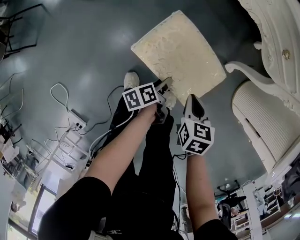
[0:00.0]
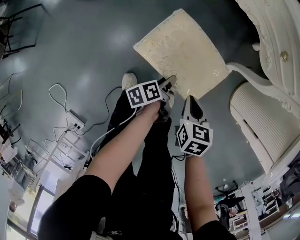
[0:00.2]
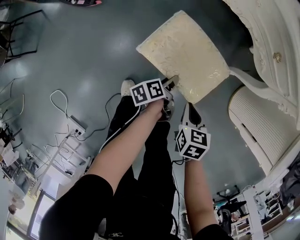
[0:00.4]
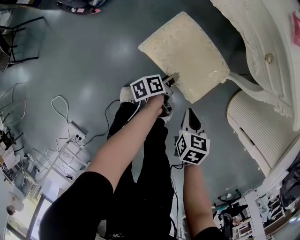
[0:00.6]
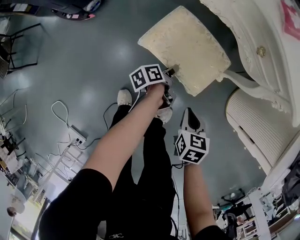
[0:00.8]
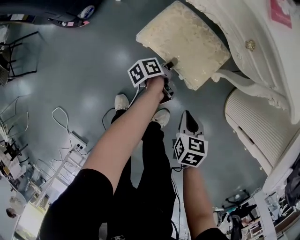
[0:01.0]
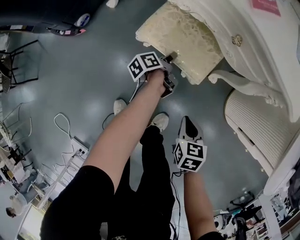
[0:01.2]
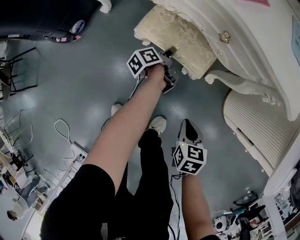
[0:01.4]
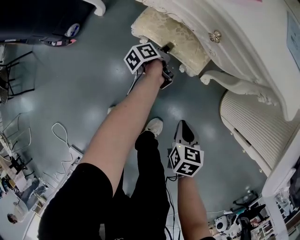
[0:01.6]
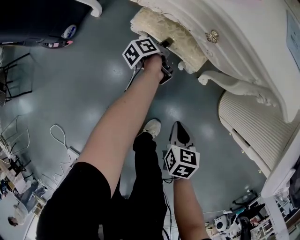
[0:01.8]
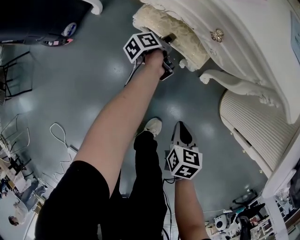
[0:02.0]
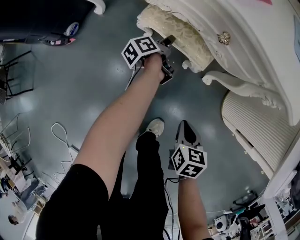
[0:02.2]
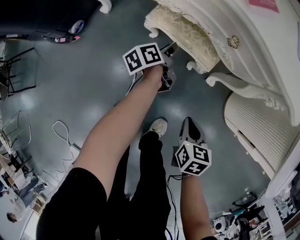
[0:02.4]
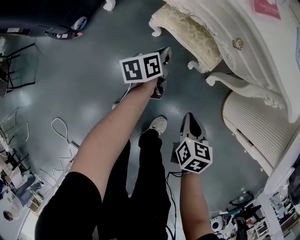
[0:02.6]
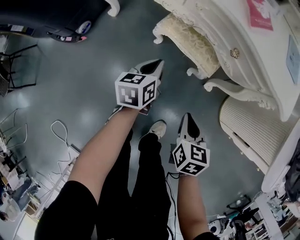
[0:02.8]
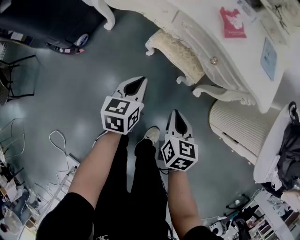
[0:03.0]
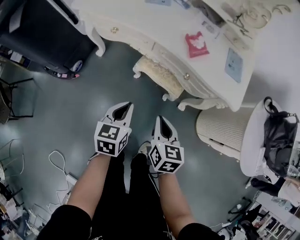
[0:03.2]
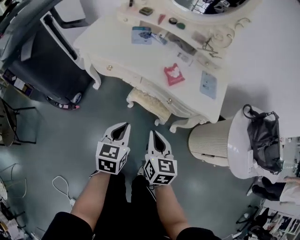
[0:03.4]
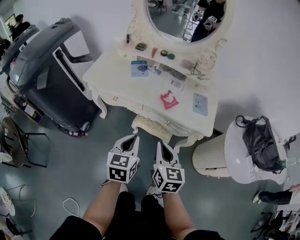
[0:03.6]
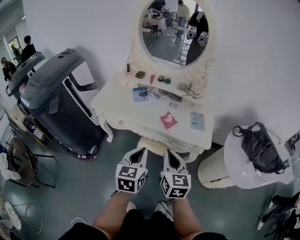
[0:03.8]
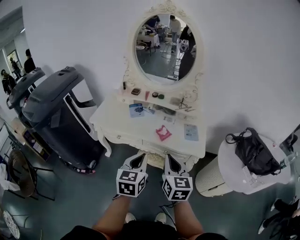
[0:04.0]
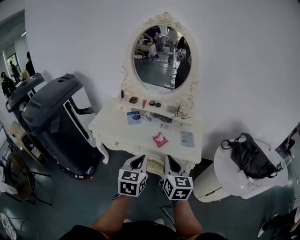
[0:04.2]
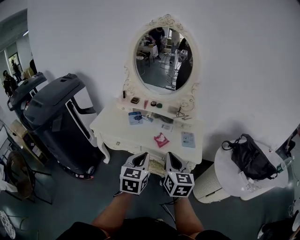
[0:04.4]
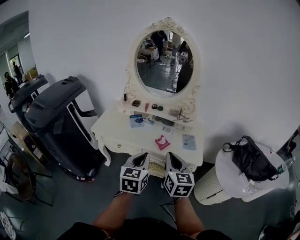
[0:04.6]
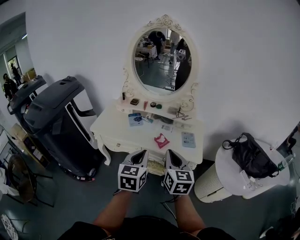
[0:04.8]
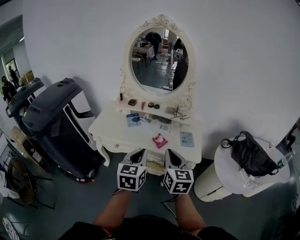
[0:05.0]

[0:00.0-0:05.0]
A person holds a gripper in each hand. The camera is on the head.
0:00.0 to 0:01.6: The left gripper travels forward by roughly 30 cm. Meanwhile the right gripper travels to the right by approximately 15 cm.
0:01.6 to 0:03.4: The right gripper shifts roughly 35 cm upward and to the left, and tips its fingers upward by some 30 degrees. The left gripper heads upward and backward, covering some 50 cm, twists roughly 80 degrees clockwise, seen from behind, and closes.
0:03.4 to 0:05.0: Both grippers travel together upward, some 25 cm. The right gripper rotates some 20 degrees. Meanwhile the left gripper turns by some 20 degrees.

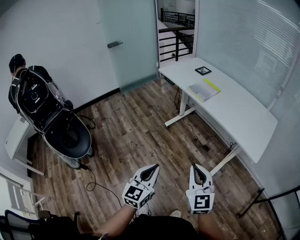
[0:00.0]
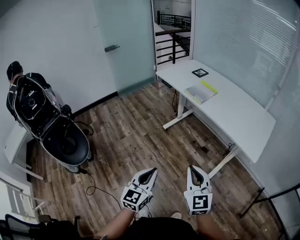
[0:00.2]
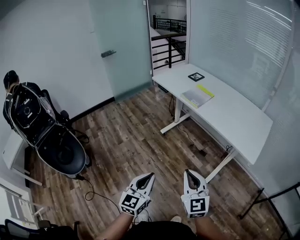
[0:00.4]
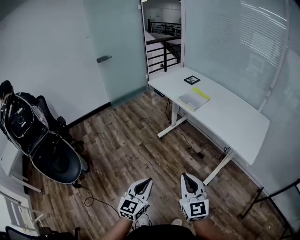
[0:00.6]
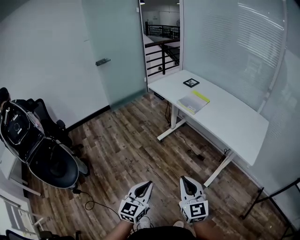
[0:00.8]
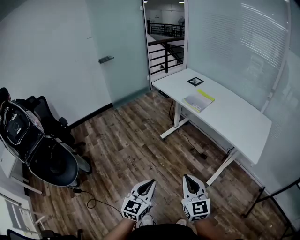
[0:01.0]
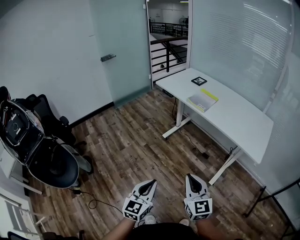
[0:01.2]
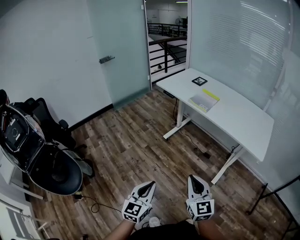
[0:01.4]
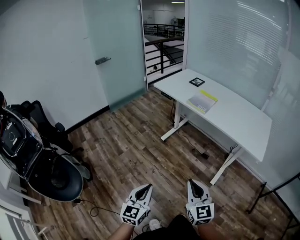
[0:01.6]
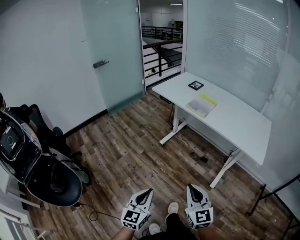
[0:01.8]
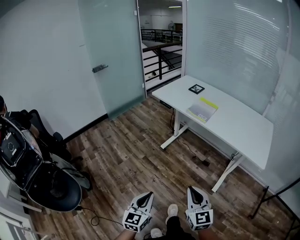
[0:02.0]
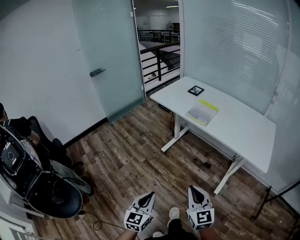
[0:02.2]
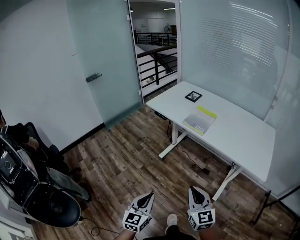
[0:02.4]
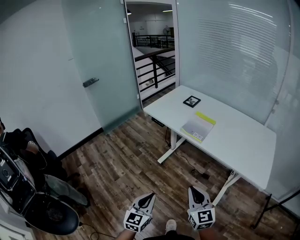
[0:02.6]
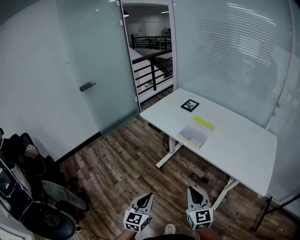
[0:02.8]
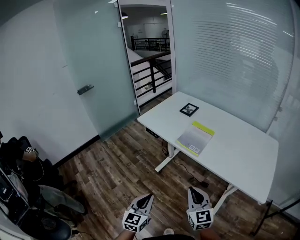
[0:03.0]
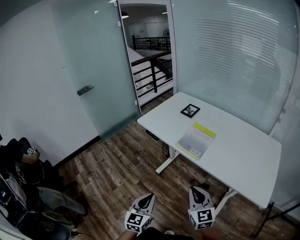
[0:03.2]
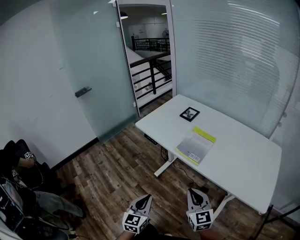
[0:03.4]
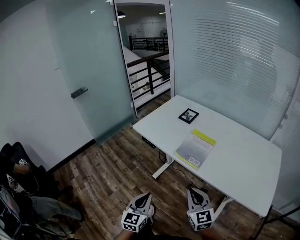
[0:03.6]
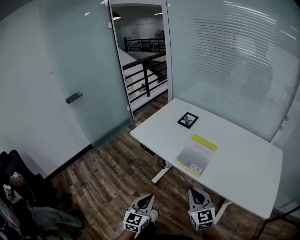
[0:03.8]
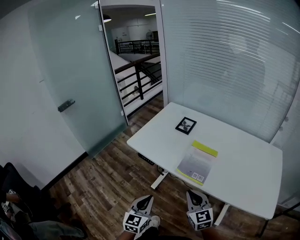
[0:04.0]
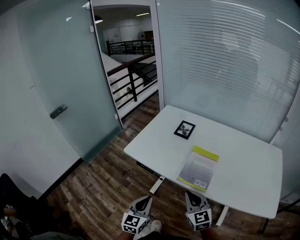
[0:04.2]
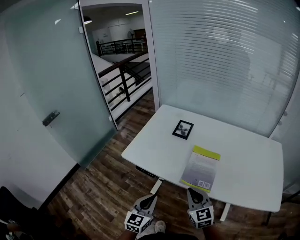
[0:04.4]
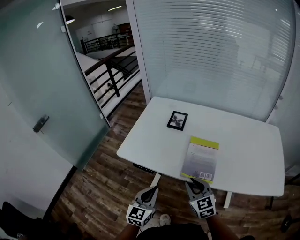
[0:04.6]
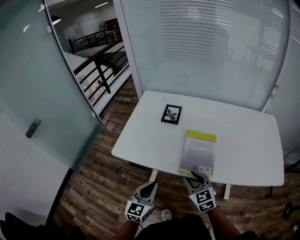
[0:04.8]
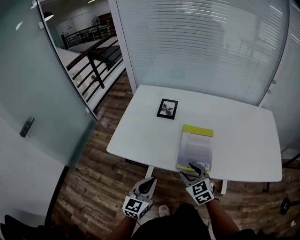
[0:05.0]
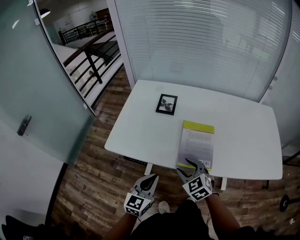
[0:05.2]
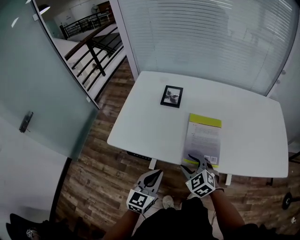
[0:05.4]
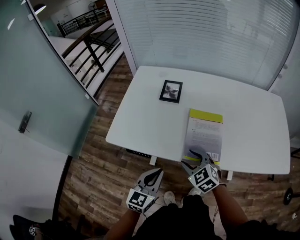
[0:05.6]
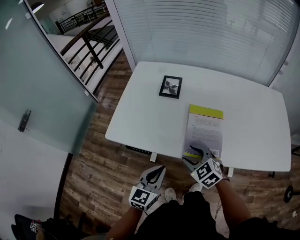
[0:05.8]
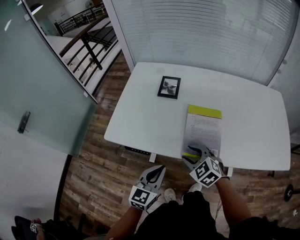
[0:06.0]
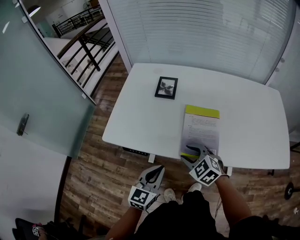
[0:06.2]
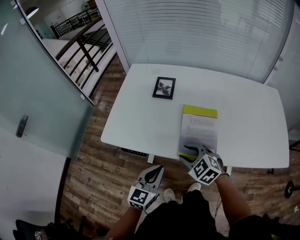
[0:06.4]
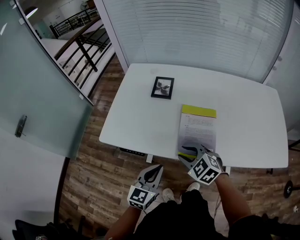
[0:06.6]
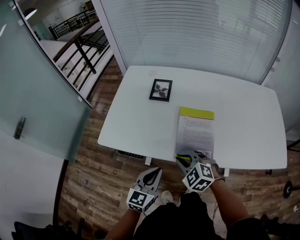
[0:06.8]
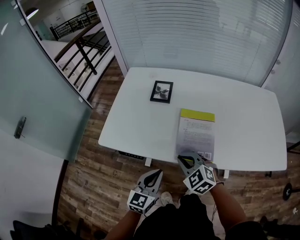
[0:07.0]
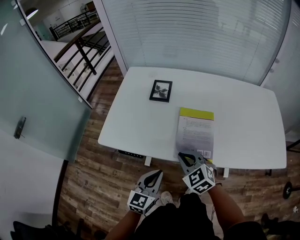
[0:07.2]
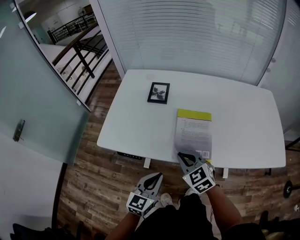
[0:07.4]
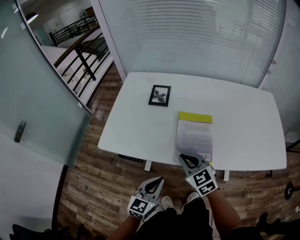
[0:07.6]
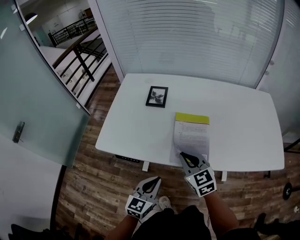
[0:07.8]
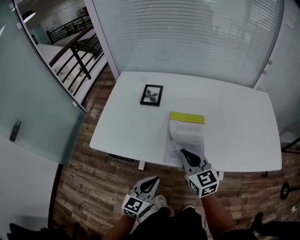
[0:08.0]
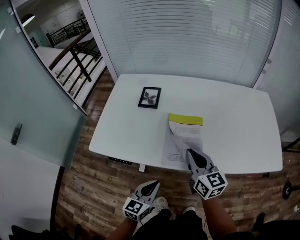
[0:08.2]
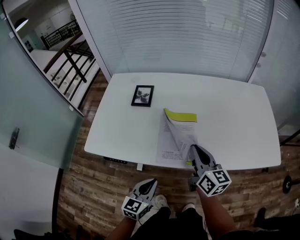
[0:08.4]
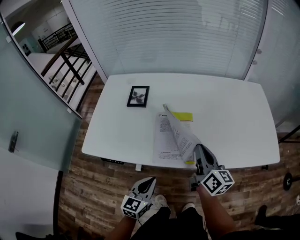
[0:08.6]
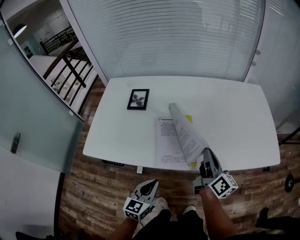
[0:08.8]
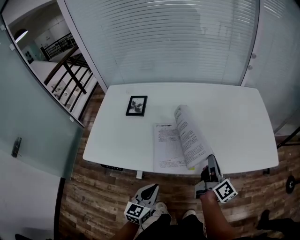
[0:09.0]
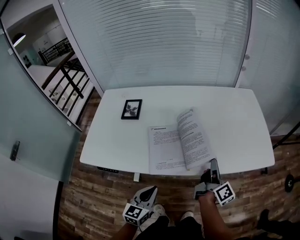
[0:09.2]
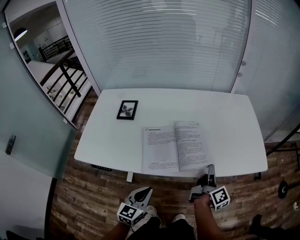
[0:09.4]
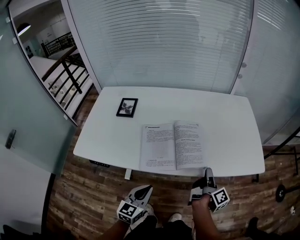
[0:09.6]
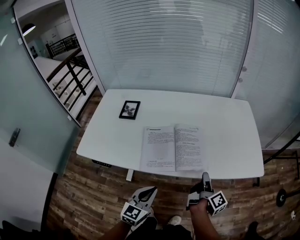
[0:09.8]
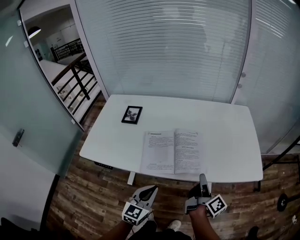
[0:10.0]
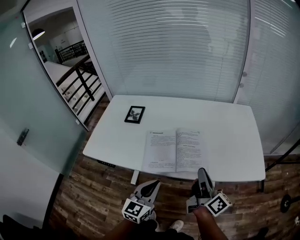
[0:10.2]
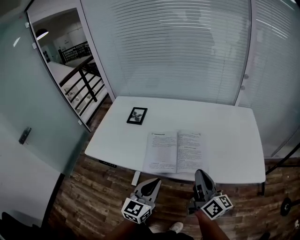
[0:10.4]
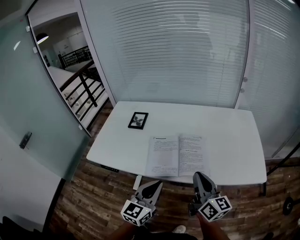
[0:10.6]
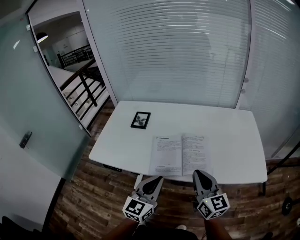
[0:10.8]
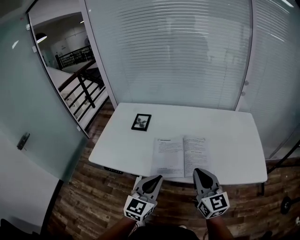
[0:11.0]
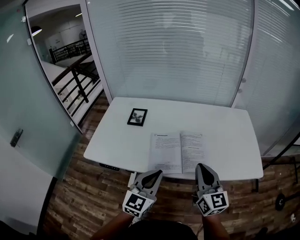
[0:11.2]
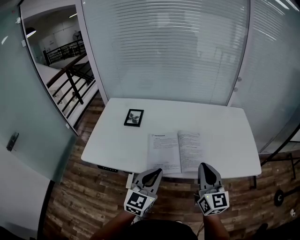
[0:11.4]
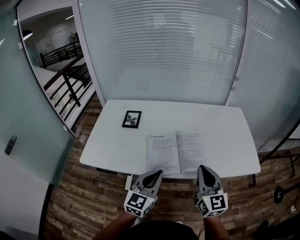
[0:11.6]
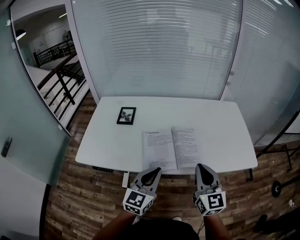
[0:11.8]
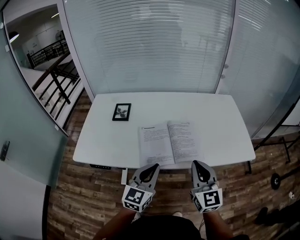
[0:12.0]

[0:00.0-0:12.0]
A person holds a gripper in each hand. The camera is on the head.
0:00.0 to 0:01.6: Both grippers move to the left, some 15 cm.
0:01.6 to 0:03.0: Both grippers move forward, approximately 30 cm.
0:03.0 to 0:04.4: Both grippers travel together forward, some 30 cm.
0:04.4 to 0:06.0: The right gripper goes some 10 cm downward and forward, rotates roughly 30 degrees, and opens. Meanwhile the left gripper travels forward by approximately 5 cm.
0:06.0 to 0:07.6: The right gripper ends up approximately 5 cm from where it was, swivels about 20 degrees, and closes.
0:07.6 to 0:09.0: The right gripper shifts roughly 25 cm to the right, and rotates around the line of its fingers by some 70 degrees, clockwise from behind. The left gripper goes approximately 10 cm to the right.
0:09.0 to 0:10.4: The right gripper shifts approximately 10 cm upward and backward, and turns by some 30 degrees, while the left gripper is displaced upward and to the right by some 15 cm.
0:10.4 to 0:12.0: The right gripper ends up about 5 cm from where it was, and rotates around the line of its fingers by some 50 degrees, counterclockwise from behind.

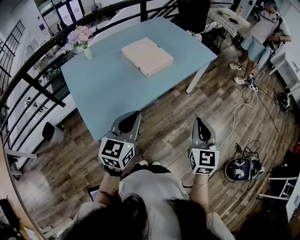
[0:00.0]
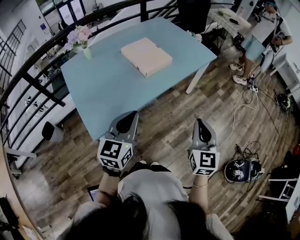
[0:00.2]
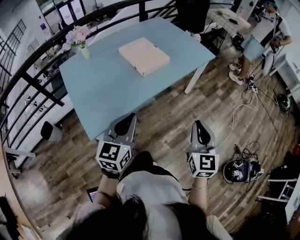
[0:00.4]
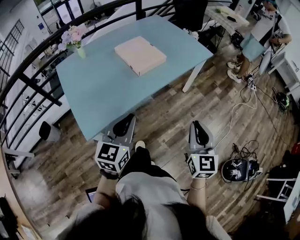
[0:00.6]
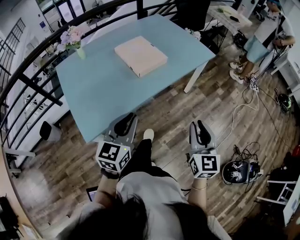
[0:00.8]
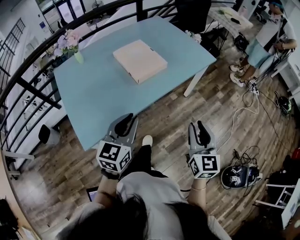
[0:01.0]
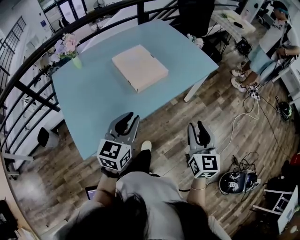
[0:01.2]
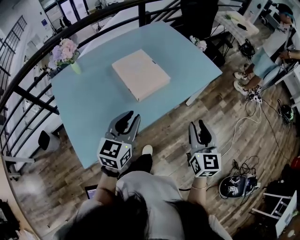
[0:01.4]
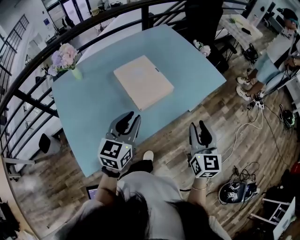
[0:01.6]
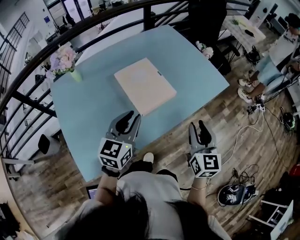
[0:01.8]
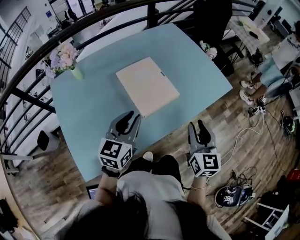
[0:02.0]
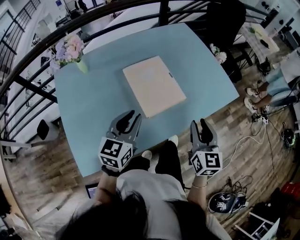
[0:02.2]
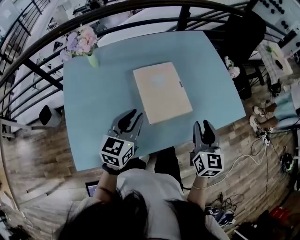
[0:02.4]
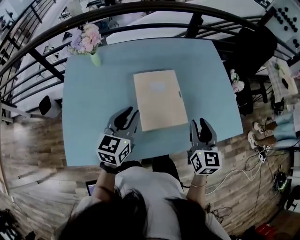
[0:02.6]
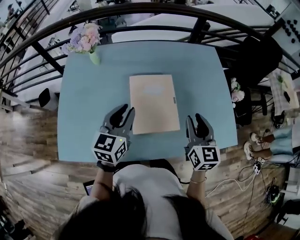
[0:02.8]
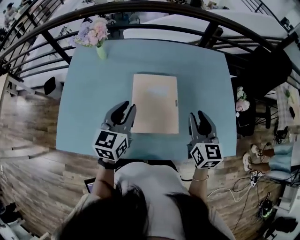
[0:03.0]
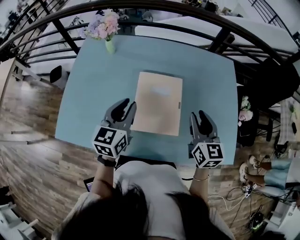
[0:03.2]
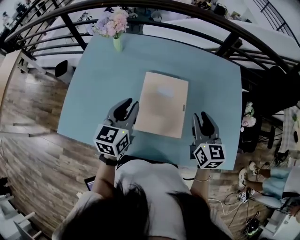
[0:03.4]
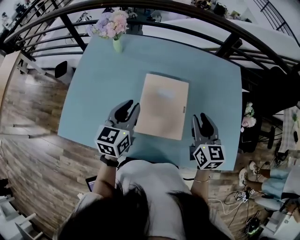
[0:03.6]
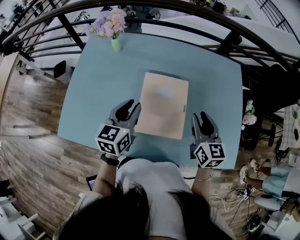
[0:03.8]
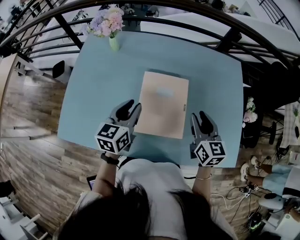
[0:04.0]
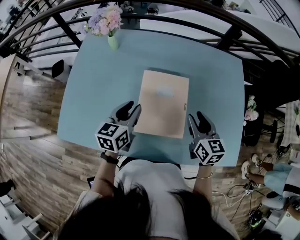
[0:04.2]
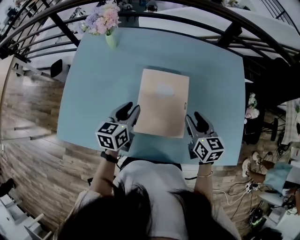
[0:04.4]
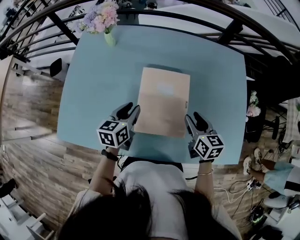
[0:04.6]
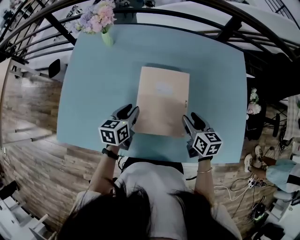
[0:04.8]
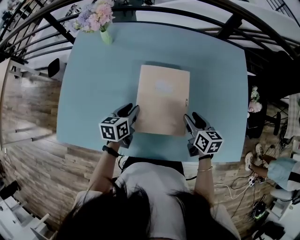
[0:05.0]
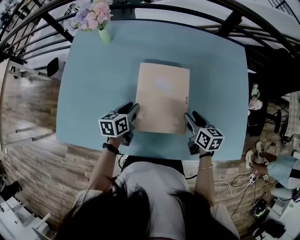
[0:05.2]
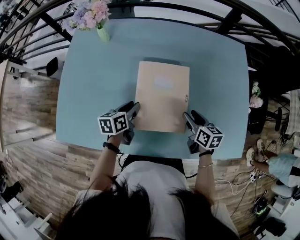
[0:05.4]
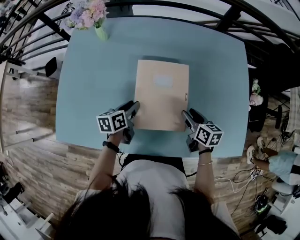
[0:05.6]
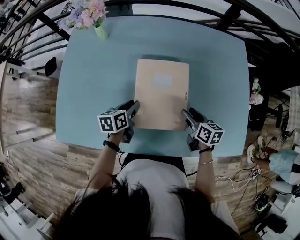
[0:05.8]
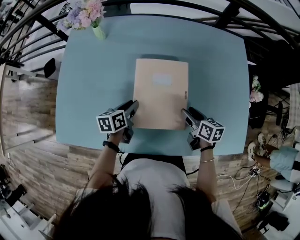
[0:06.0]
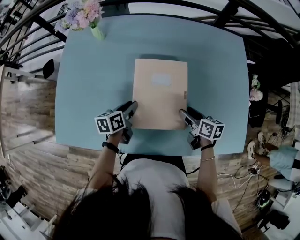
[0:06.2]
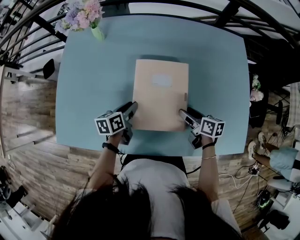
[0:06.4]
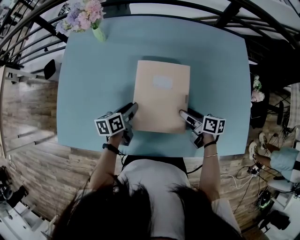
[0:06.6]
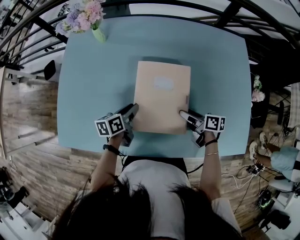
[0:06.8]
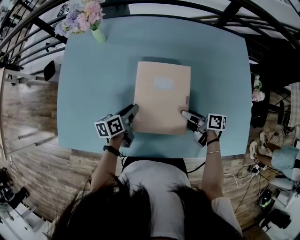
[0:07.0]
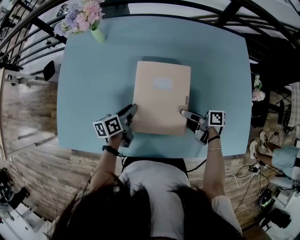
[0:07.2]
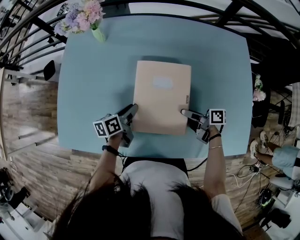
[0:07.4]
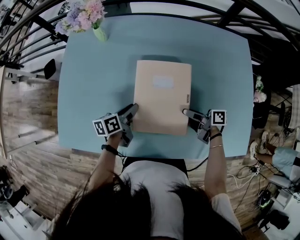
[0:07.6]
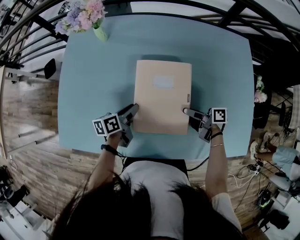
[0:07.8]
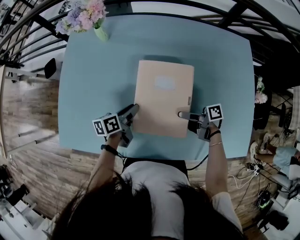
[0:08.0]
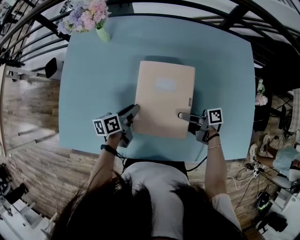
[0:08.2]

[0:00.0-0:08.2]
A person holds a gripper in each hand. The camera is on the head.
0:00.0 to 0:01.6: Both grippers move forward, about 25 cm. The right gripper opens up.
0:01.6 to 0:03.2: The left gripper shifts by approximately 20 cm, and swivels roughly 40 degrees. Meanwhile the right gripper moves approximately 35 cm, and rotates approximately 40 degrees.
0:03.2 to 0:05.0: Both grippers travel together downward, approximately 15 cm. The right gripper rotates about 30 degrees. The left gripper rotates about 30 degrees.
0:05.0 to 0:06.6: The right gripper travels downward by roughly 5 cm, and swivels about 30 degrees.
0:06.6 to 0:08.2: The right gripper shifts approximately 5 cm to the left, and changes its angle by approximately 30 degrees.
